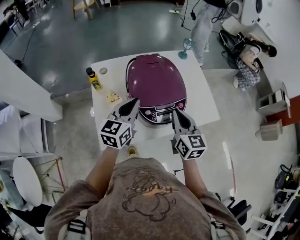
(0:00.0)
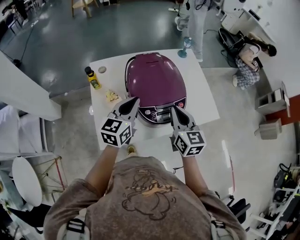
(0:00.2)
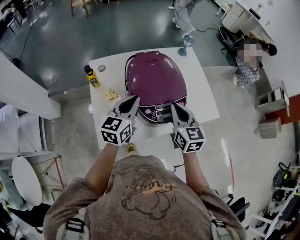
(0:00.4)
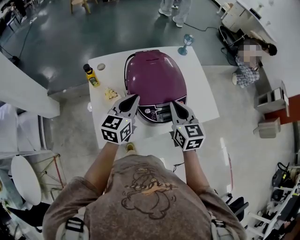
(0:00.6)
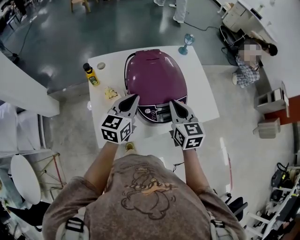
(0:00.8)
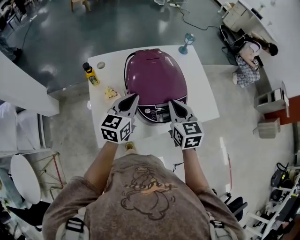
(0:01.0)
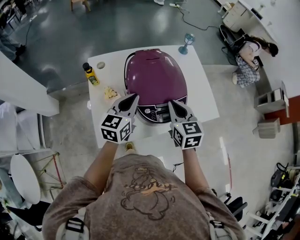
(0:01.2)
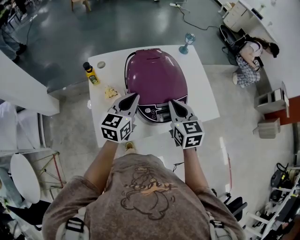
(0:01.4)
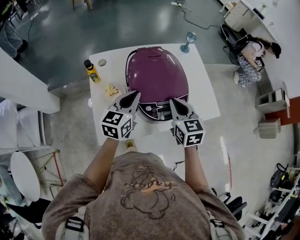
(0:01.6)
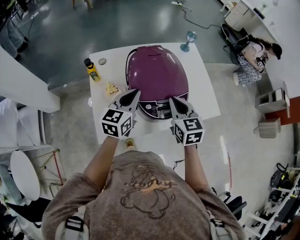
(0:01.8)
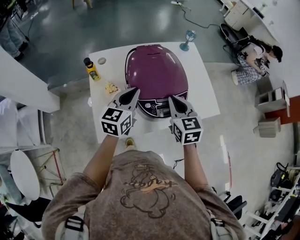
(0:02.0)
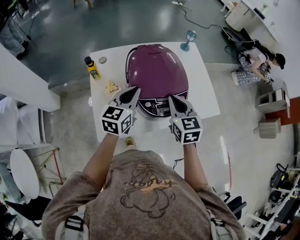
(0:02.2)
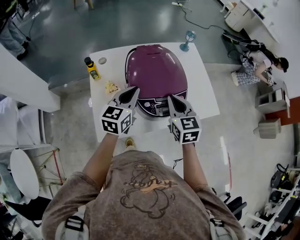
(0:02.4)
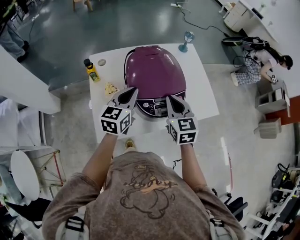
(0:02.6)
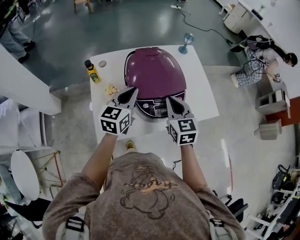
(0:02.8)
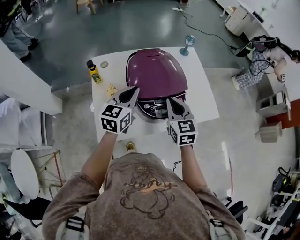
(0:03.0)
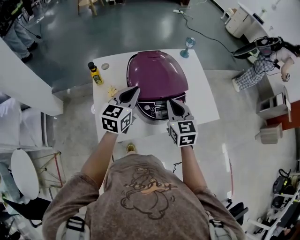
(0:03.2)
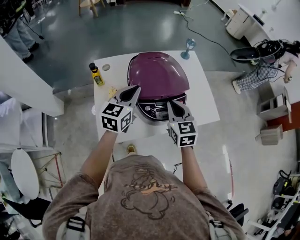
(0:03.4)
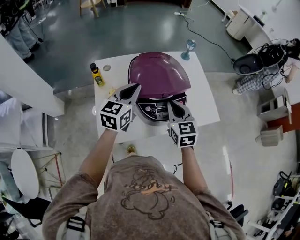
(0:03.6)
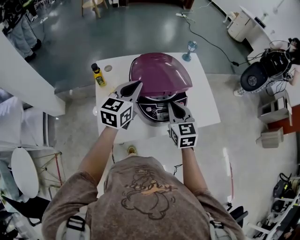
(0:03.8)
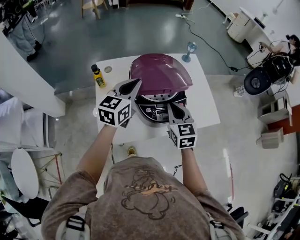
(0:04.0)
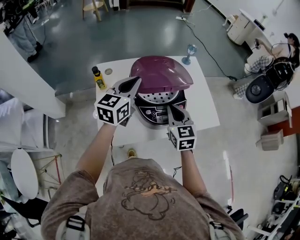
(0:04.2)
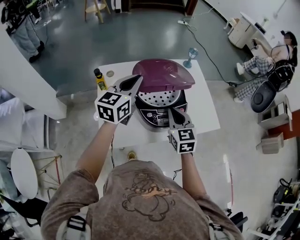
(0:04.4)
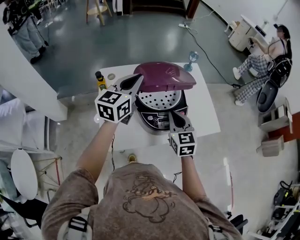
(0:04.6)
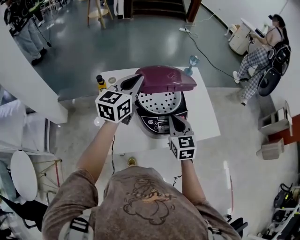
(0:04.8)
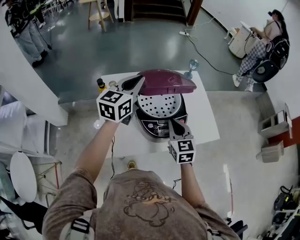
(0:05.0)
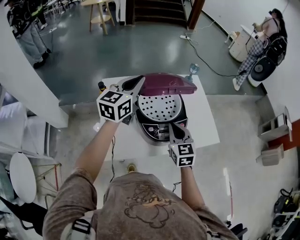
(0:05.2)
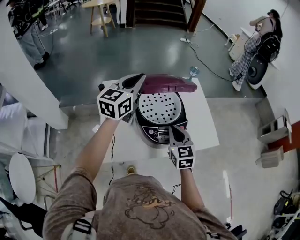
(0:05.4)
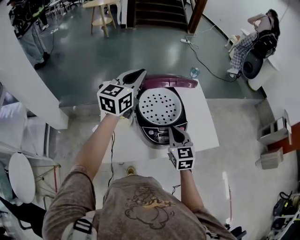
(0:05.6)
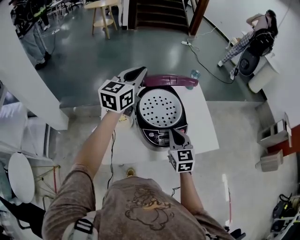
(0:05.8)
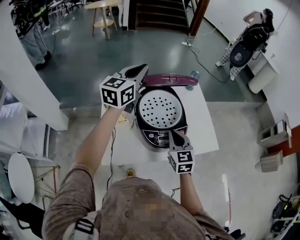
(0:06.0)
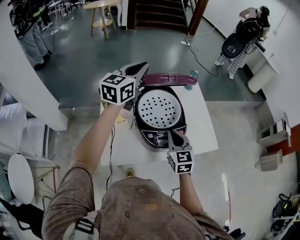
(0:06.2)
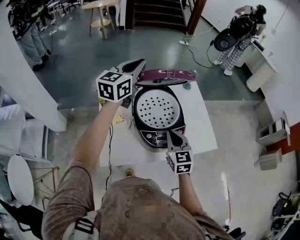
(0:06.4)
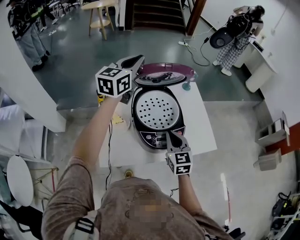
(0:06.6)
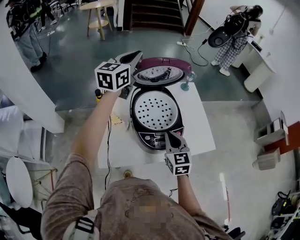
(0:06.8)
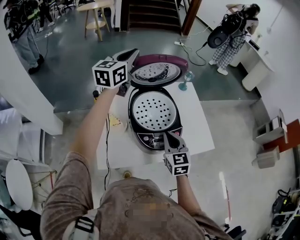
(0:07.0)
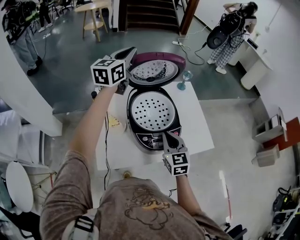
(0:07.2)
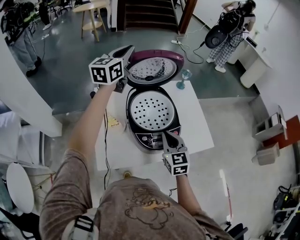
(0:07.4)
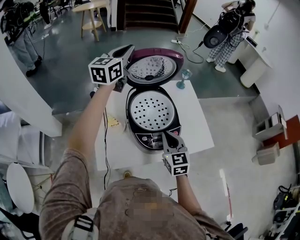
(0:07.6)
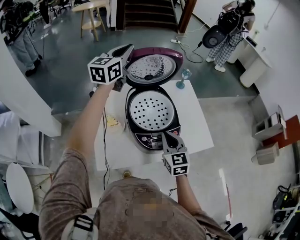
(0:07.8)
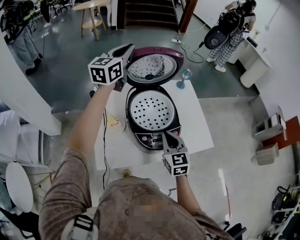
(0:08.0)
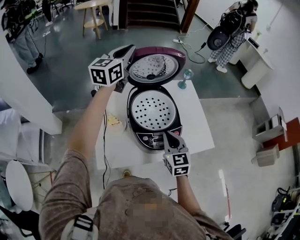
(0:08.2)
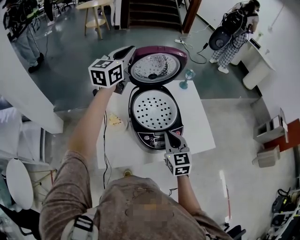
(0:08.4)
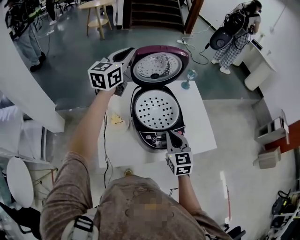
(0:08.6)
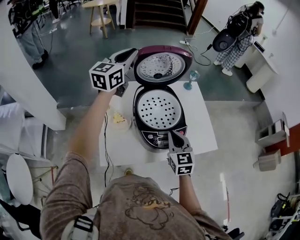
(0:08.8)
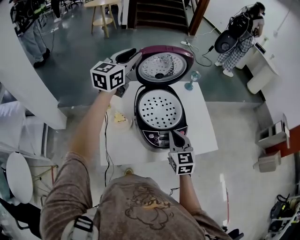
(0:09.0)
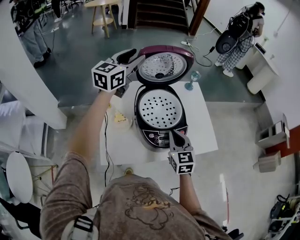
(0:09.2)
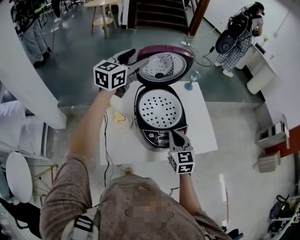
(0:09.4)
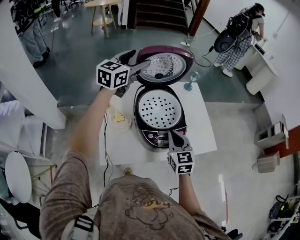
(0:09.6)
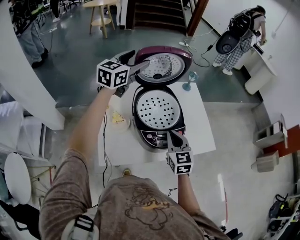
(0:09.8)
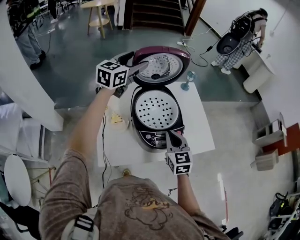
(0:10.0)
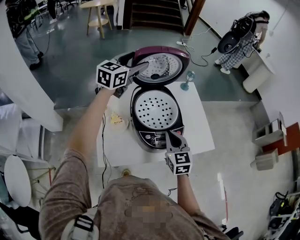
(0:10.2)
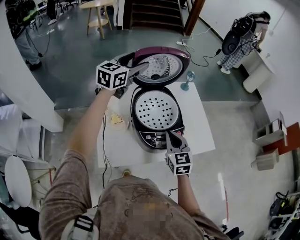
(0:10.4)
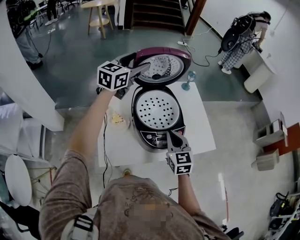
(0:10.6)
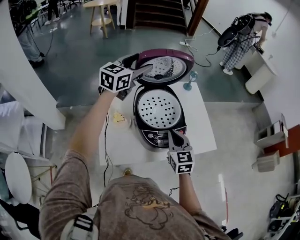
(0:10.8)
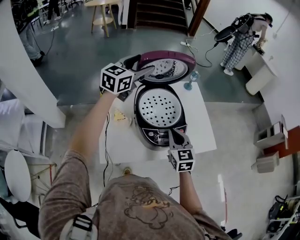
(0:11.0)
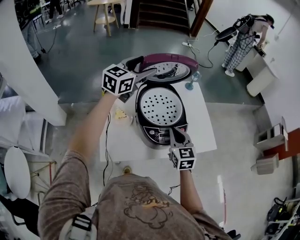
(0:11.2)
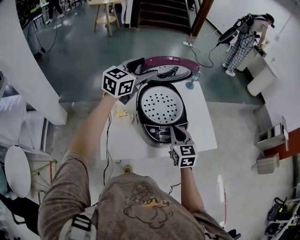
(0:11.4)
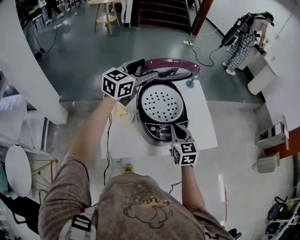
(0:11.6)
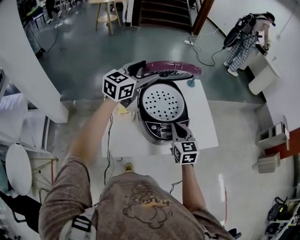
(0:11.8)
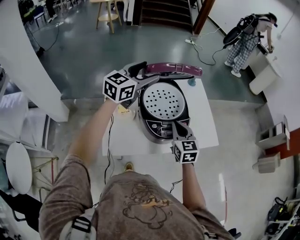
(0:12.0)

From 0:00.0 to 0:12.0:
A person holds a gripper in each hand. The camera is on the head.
From 0:00.0 to 0:03.0: The grippers make only small movements.
From 0:03.0 to 0:04.4: The left gripper travels upward by about 10 cm.
From 0:04.4 to 0:06.0: The left gripper is displaced upward and forward by some 10 cm.
From 0:06.0 to 0:07.6: The left gripper is displaced forward by approximately 10 cm.
From 0:07.6 to 0:09.0: The grippers move only a little.
From 0:09.0 to 0:10.4: The left gripper moves about 5 cm, and opens.
From 0:10.4 to 0:12.0: The left gripper is displaced backward by roughly 10 cm.

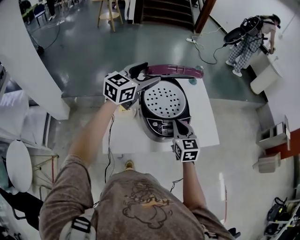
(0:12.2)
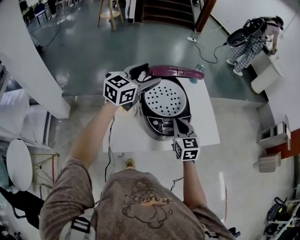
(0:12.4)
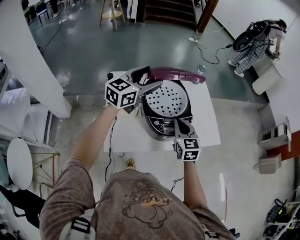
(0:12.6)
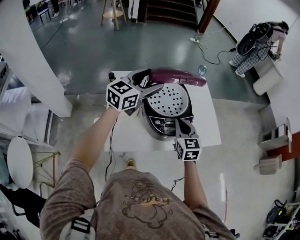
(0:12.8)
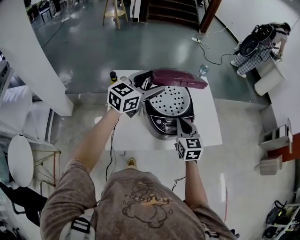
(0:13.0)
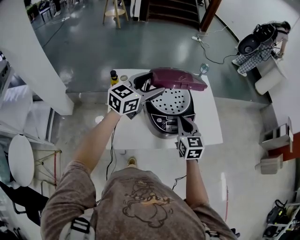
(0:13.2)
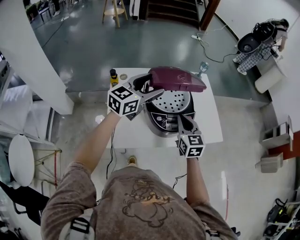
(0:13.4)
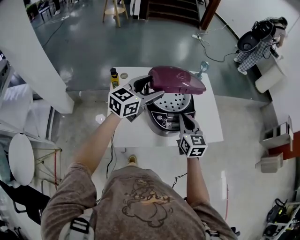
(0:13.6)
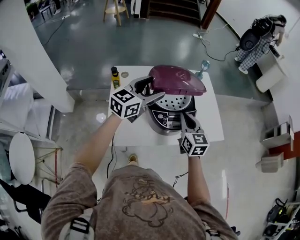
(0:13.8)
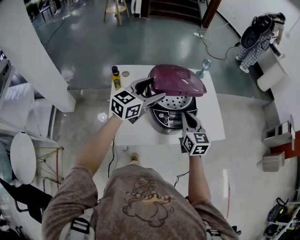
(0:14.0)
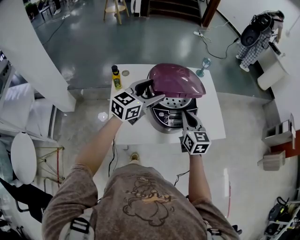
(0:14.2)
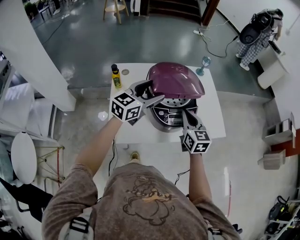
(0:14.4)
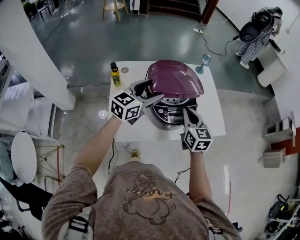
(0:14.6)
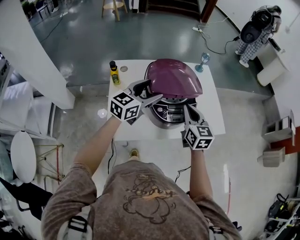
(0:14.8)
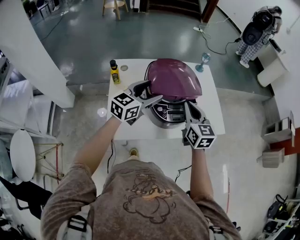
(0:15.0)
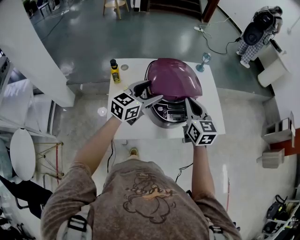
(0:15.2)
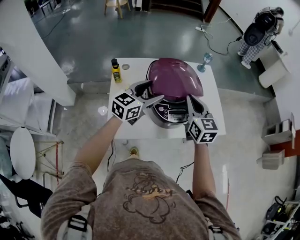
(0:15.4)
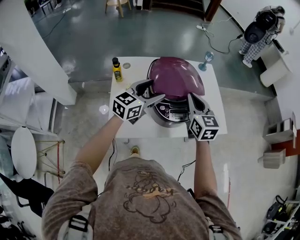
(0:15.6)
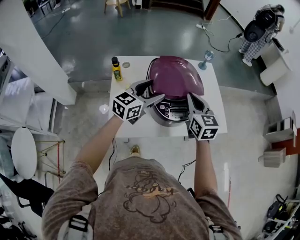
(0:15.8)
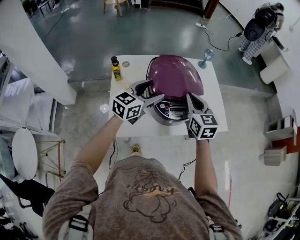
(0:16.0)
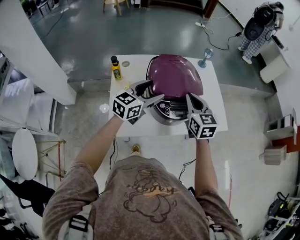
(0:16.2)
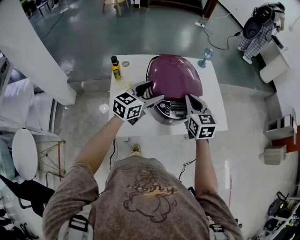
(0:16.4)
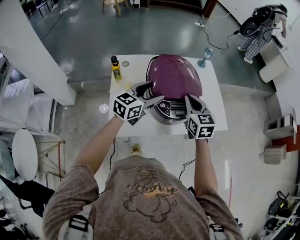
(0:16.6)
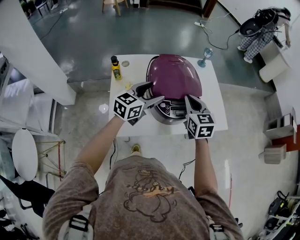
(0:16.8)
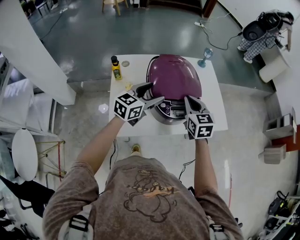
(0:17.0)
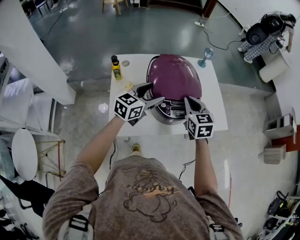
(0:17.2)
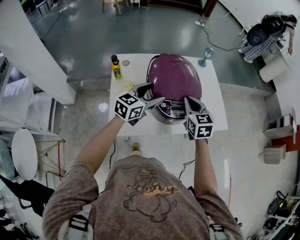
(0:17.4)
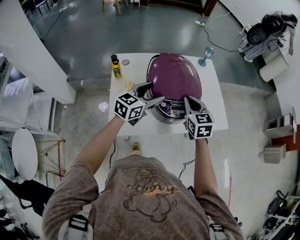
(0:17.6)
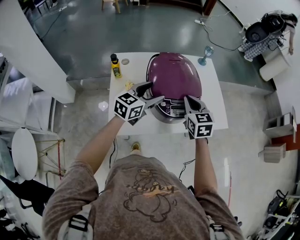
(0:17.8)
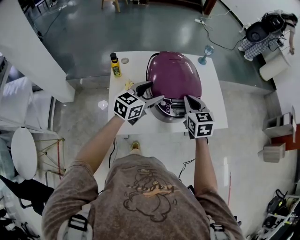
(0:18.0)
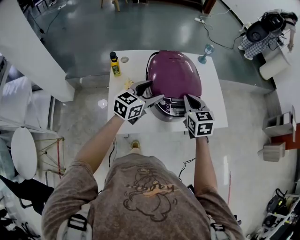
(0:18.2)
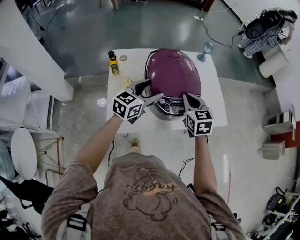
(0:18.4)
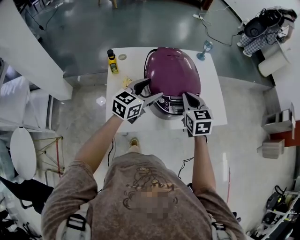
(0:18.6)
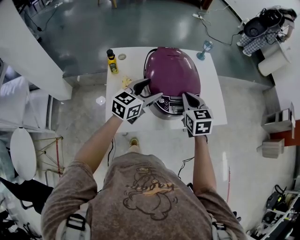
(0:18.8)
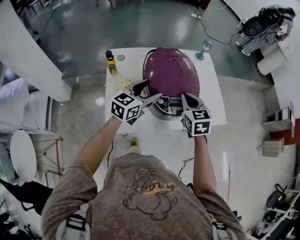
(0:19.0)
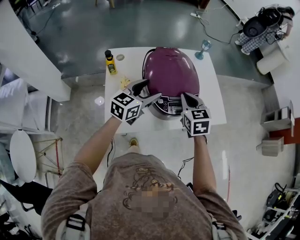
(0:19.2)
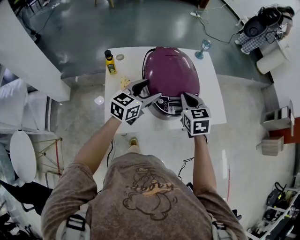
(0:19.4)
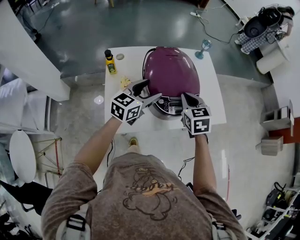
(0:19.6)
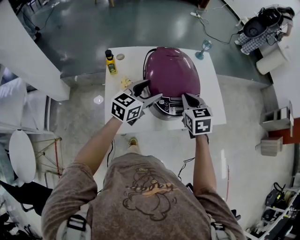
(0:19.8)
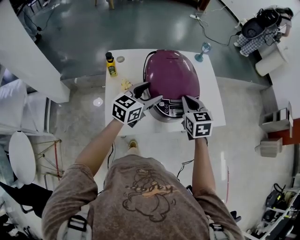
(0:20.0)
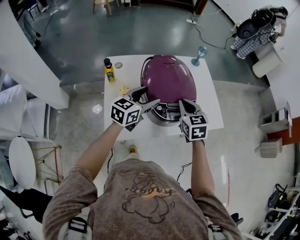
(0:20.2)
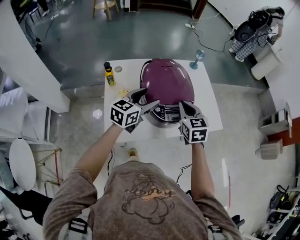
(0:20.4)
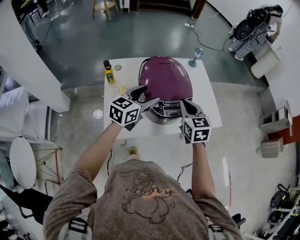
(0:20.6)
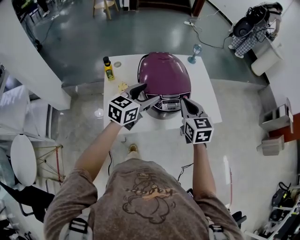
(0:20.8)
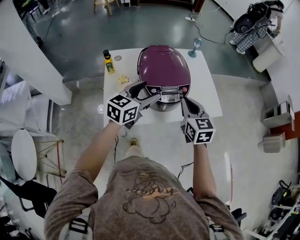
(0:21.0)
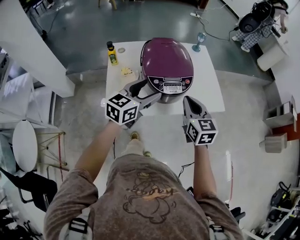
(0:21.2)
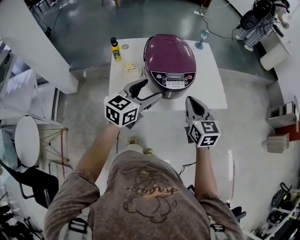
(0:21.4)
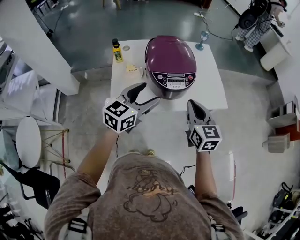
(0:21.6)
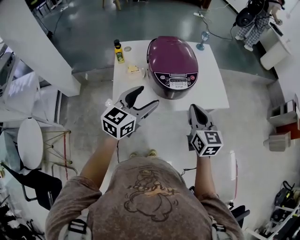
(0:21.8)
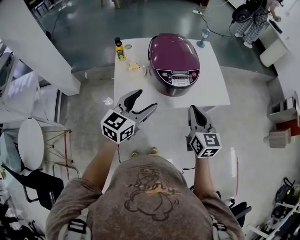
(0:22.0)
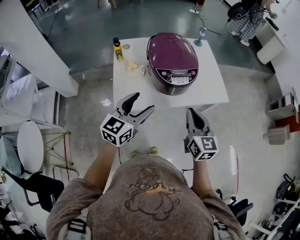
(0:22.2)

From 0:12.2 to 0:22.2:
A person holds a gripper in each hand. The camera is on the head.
From 0:12.2 to 0:13.6: The left gripper is displaced backward and downward by some 10 cm.
From 0:13.6 to 0:15.0: The left gripper is displaced downward by approximately 5 cm.
From 0:15.0 to 0:18.0: The grippers stay close to where they were, moving slightly.
From 0:18.0 to 0:19.4: The grippers make only small movements.
From 0:19.4 to 0:20.8: The left gripper shifts by approximately 5 cm. Meanwhile the right gripper heads backward, covering approximately 5 cm.
From 0:20.8 to 0:22.2: The grippers both shift backward by about 15 cm.

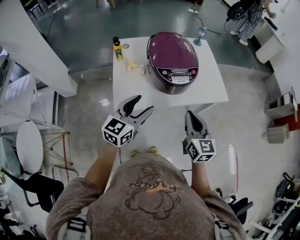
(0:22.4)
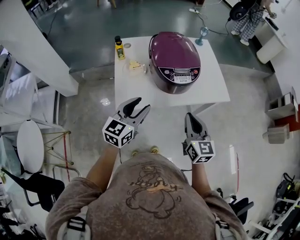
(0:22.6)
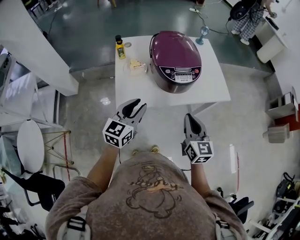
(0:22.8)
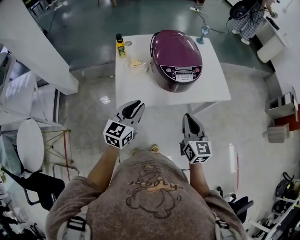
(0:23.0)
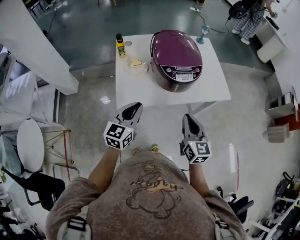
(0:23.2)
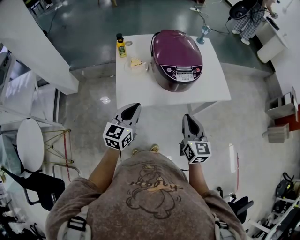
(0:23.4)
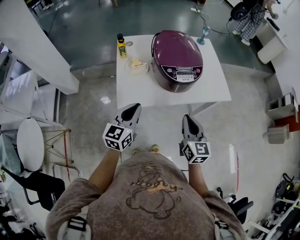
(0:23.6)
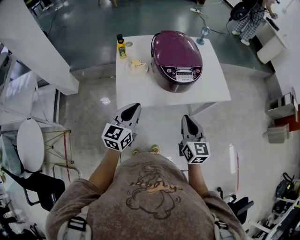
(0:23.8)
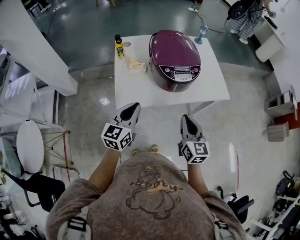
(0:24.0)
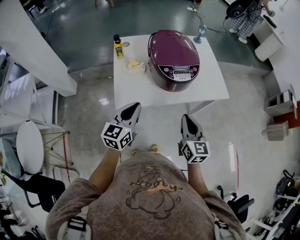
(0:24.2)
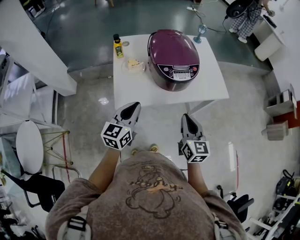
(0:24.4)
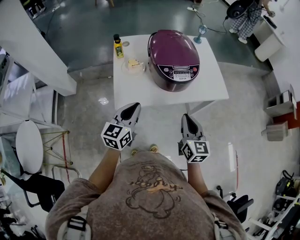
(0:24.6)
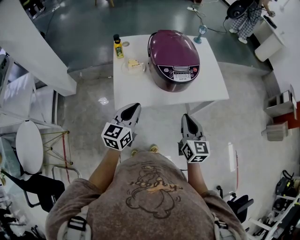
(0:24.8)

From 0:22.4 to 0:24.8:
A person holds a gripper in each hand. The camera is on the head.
From 0:22.4 to 0:23.6: The left gripper ends up some 5 cm from where it was, and closes its fingers.
From 0:23.6 to 0:24.8: The two grippers keep their place.
